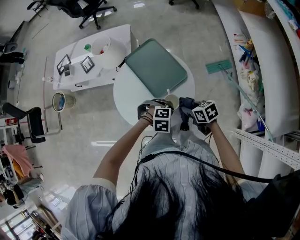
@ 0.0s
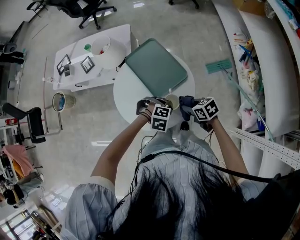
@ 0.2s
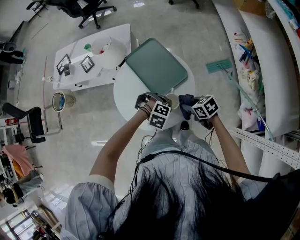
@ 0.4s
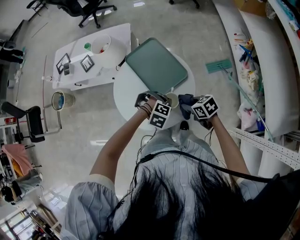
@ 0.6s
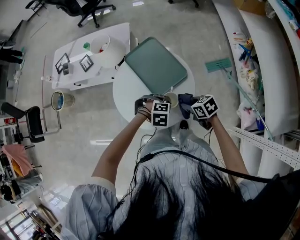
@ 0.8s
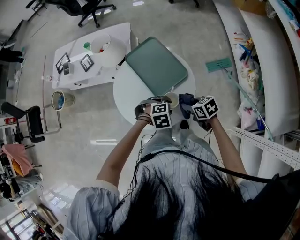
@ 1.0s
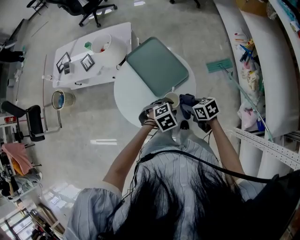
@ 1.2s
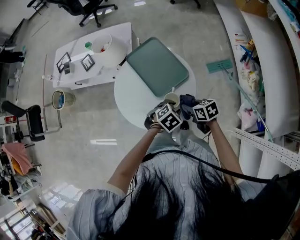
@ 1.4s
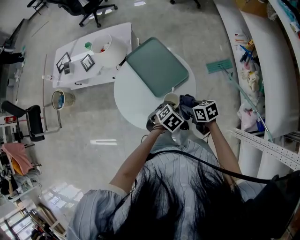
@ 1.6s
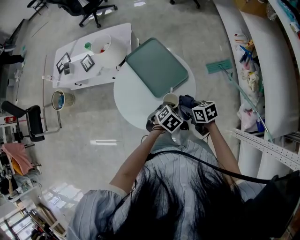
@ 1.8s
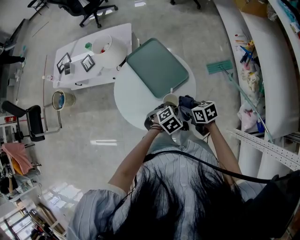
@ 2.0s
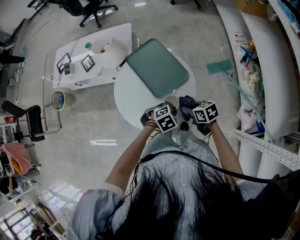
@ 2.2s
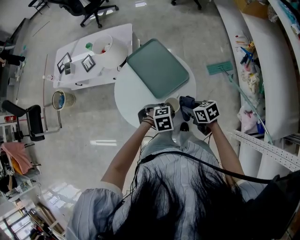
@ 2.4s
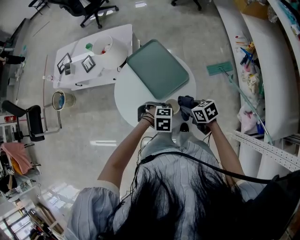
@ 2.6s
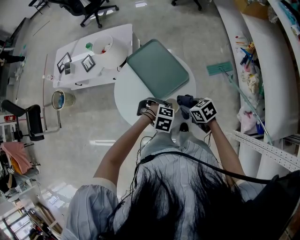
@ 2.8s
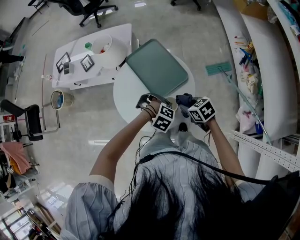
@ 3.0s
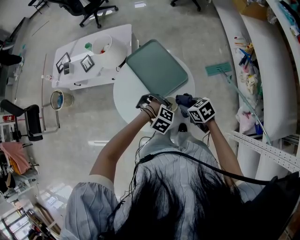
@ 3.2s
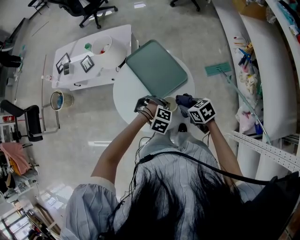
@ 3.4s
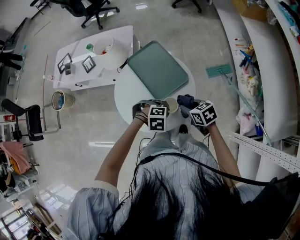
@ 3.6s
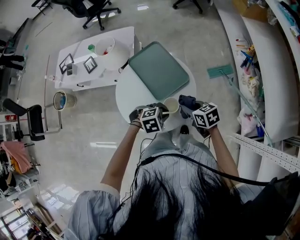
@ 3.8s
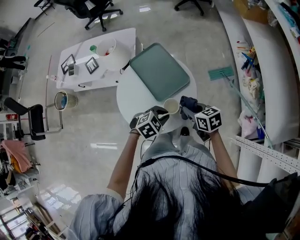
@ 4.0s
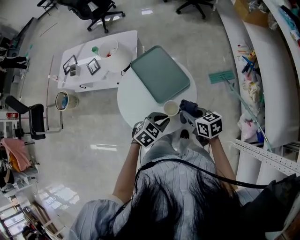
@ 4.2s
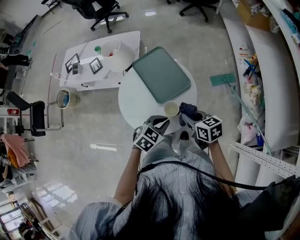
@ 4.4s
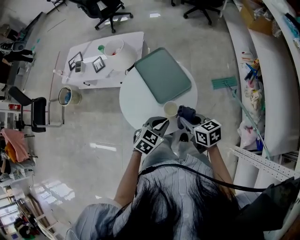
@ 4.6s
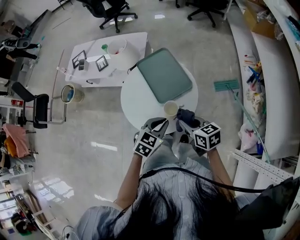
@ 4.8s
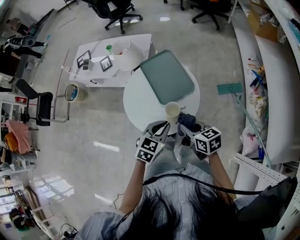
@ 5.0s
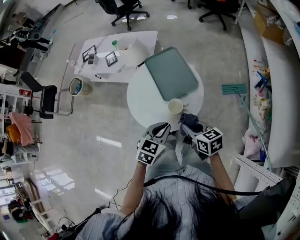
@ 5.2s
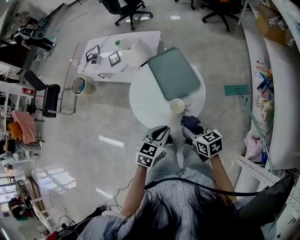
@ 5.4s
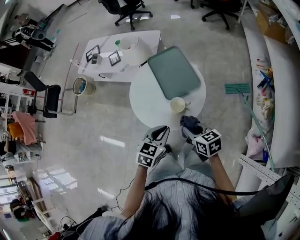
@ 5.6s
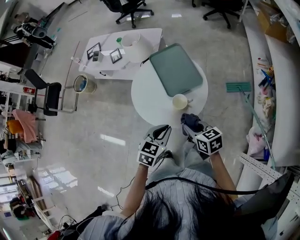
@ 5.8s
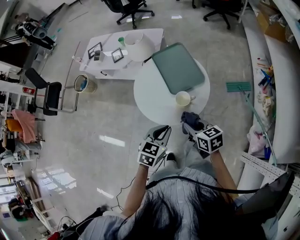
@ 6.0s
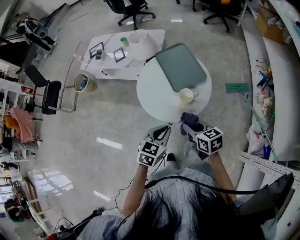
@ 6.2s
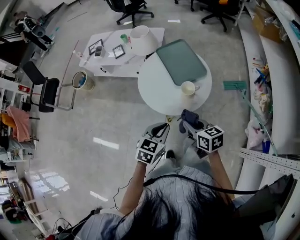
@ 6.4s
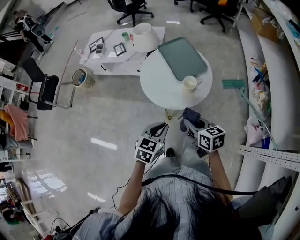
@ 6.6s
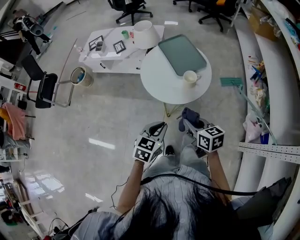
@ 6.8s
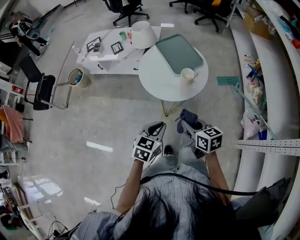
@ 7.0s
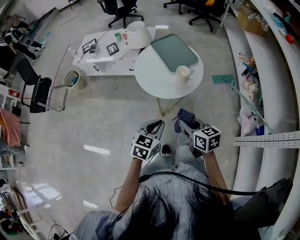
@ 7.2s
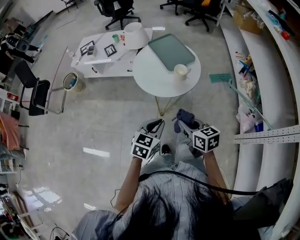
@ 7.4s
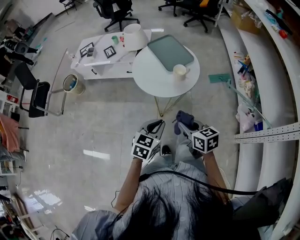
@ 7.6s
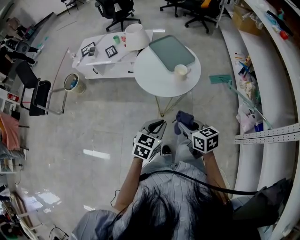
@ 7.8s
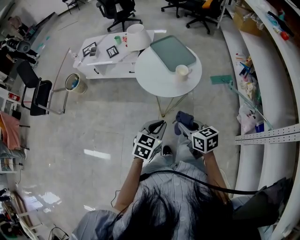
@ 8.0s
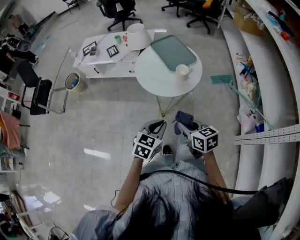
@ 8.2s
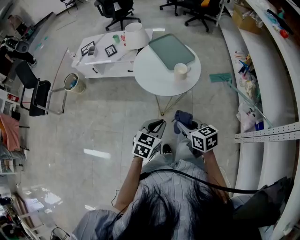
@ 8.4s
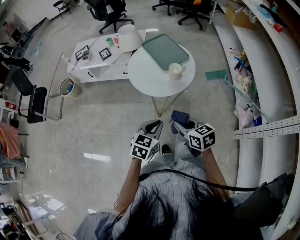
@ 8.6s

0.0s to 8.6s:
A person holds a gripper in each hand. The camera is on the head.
0.0s to 1.4s: The left gripper rolls counterclockwise, seen from behind, by approximately 40 degrees, and opens up.
1.4s to 2.8s: The left gripper moves approximately 5 cm, rotates around the line of its fingers by some 50 degrees, clockwise from behind, and closes its fingers.
2.8s to 4.4s: The two grippers go some 10 cm upward. The left gripper points its fingers about 30 degrees further upward.
4.4s to 5.8s: Both grippers travel together backward, about 5 cm. The left gripper swivels roughly 30 degrees.
5.8s to 7.2s: The grippers both shift backward and to the left by approximately 20 cm.
7.2s to 8.6s: There are only small adjustments of the grippers.

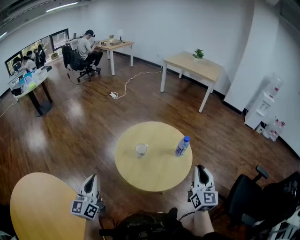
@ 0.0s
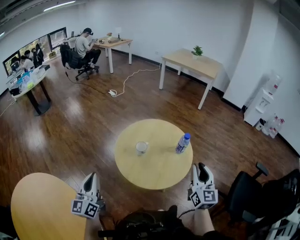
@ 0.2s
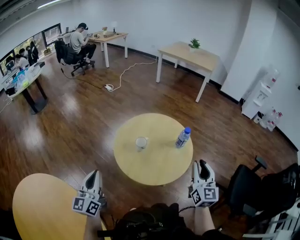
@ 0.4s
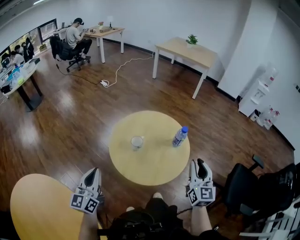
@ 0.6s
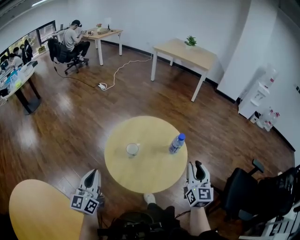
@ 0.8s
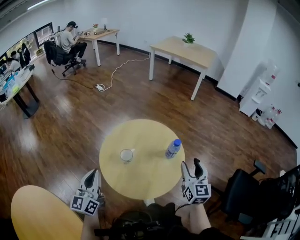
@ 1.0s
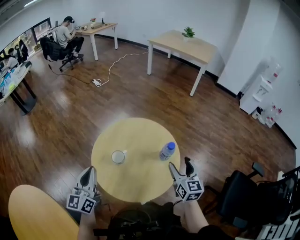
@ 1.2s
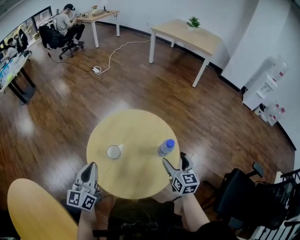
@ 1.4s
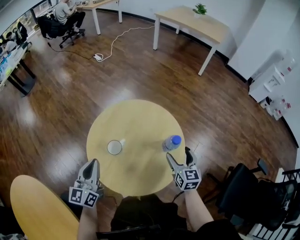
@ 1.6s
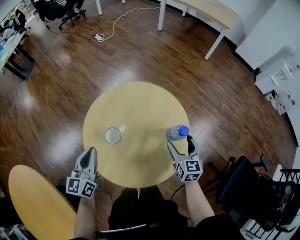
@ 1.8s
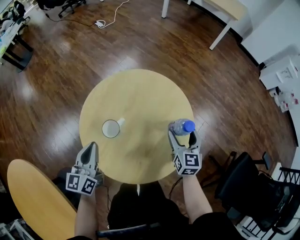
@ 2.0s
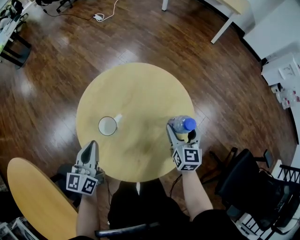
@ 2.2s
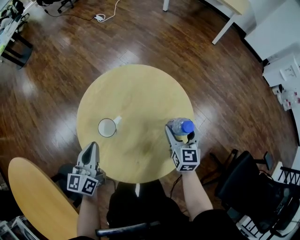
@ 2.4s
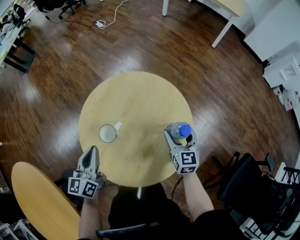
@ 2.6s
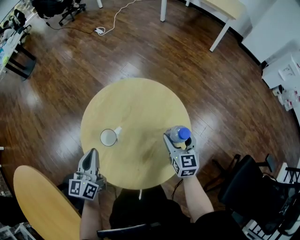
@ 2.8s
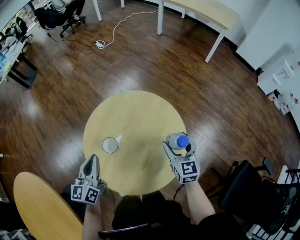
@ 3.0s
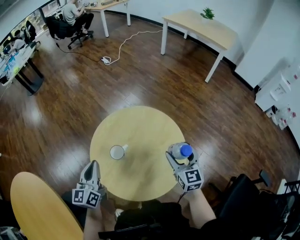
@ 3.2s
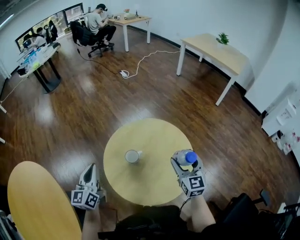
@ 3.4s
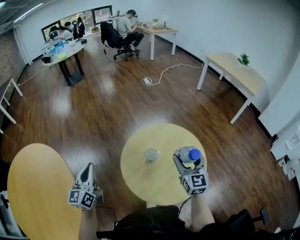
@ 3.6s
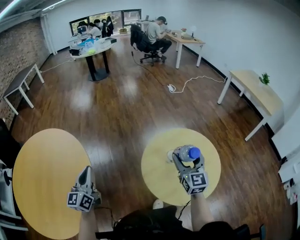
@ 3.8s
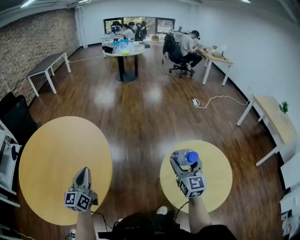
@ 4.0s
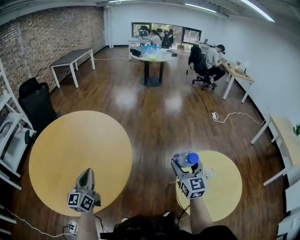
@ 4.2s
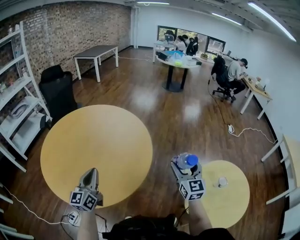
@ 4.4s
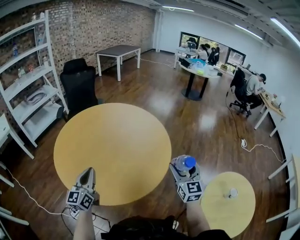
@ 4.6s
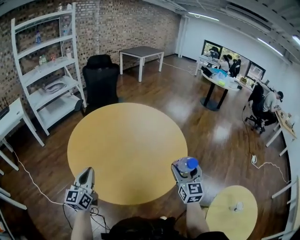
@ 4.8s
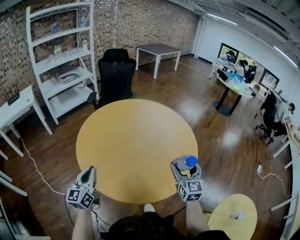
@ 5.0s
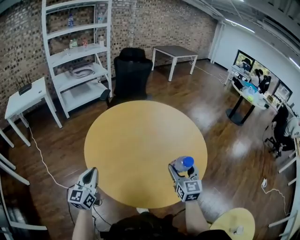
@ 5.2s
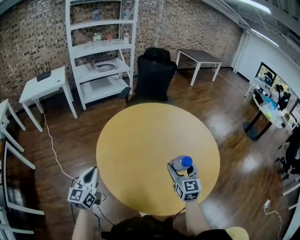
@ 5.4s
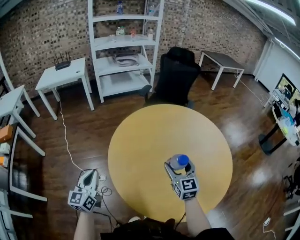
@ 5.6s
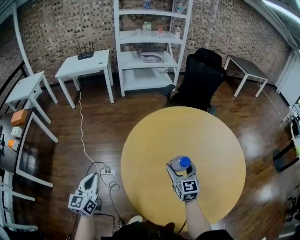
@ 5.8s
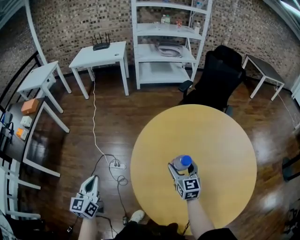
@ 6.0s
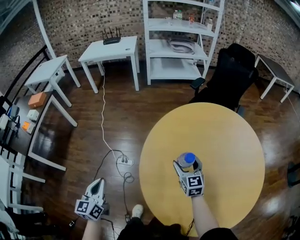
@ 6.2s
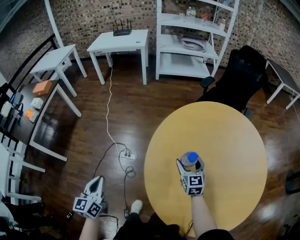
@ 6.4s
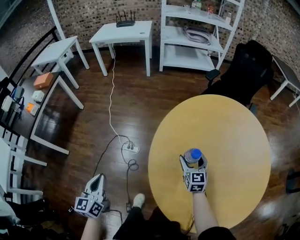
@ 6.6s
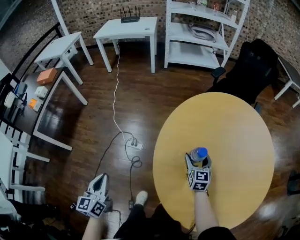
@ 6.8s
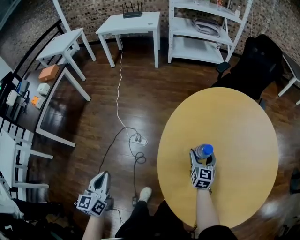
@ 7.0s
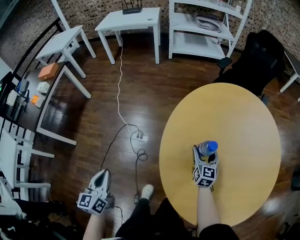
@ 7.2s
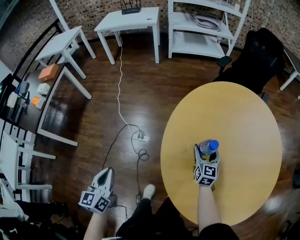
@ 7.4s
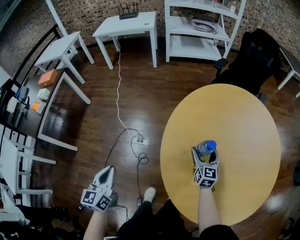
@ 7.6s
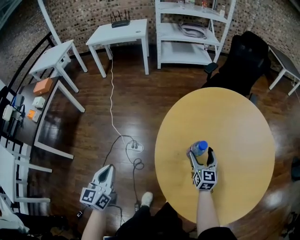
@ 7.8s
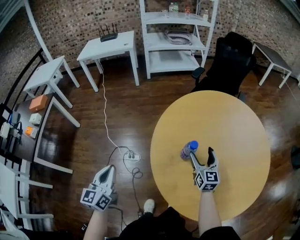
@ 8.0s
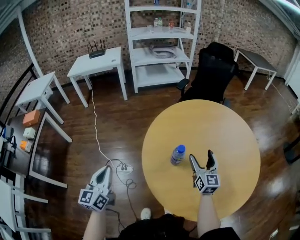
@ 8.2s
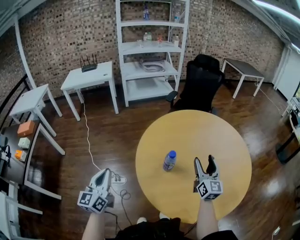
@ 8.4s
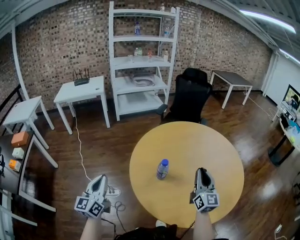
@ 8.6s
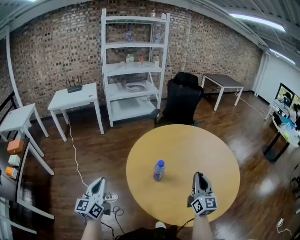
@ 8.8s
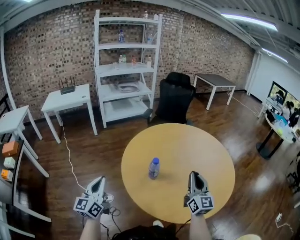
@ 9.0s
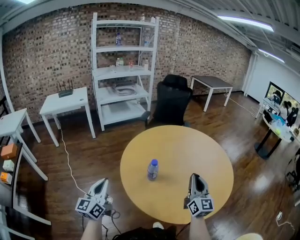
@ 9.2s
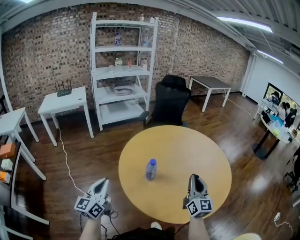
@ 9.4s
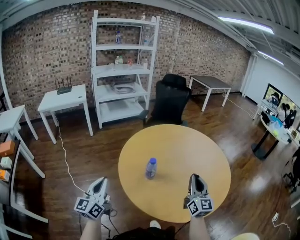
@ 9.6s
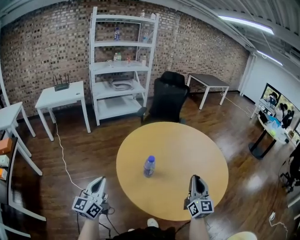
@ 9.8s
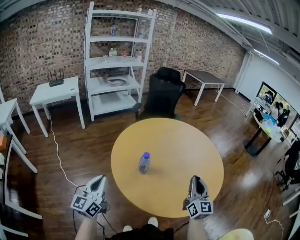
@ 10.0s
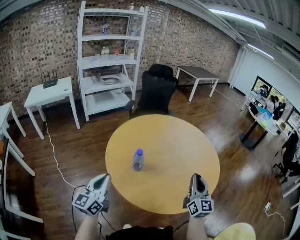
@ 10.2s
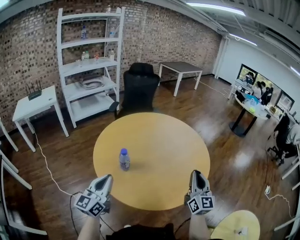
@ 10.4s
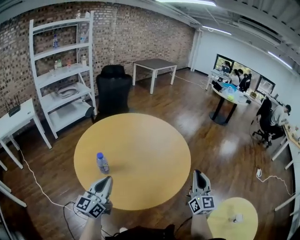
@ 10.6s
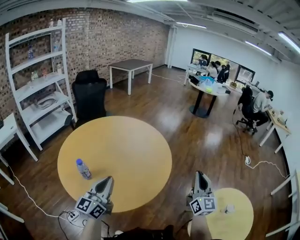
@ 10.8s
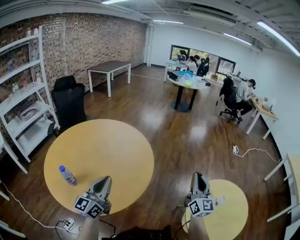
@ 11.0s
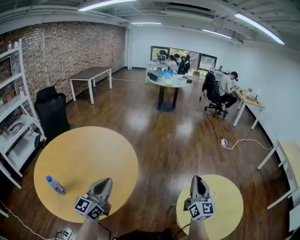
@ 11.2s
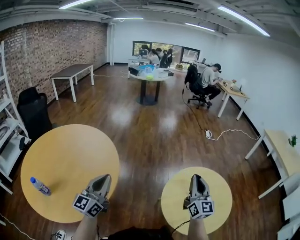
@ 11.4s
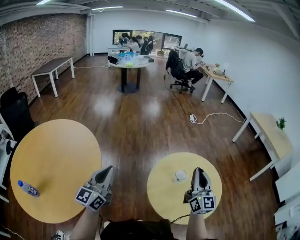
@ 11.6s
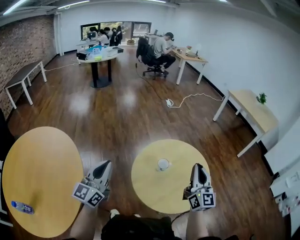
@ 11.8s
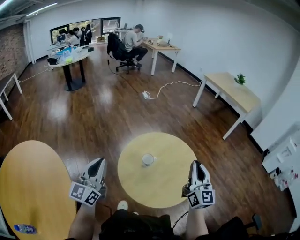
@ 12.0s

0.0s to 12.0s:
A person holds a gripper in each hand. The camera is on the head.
0.0s to 1.6s: The right gripper moves downward and forward, approximately 25 cm, swivels about 30 degrees, and opens; the left gripper shifts approximately 25 cm forward, to the right and downward.
3.0s to 4.4s: Both grippers are carried approximately 60 cm. The right gripper changes its angle by approximately 70 degrees; the left gripper rotates approximately 70 degrees.
4.4s to 6.0s: The right gripper changes place by roughly 60 cm, and turns by approximately 70 degrees. Meanwhile the left gripper changes place by about 40 cm, and changes its angle by about 70 degrees.
6.0s to 7.6s: The right gripper moves downward, roughly 10 cm, while the left gripper moves to the left, approximately 5 cm.
7.6s to 9.0s: The left gripper goes roughly 15 cm upward, forward and to the right, and swivels some 40 degrees. The right gripper moves upward, backward and to the right, approximately 35 cm, turns by roughly 40 degrees, and closes.
9.0s to 10.4s: The right gripper moves to the right and backward, approximately 15 cm. Meanwhile the left gripper moves to the right, about 15 cm, and rotates approximately 20 degrees.
10.4s to 12.0s: The left gripper moves approximately 70 cm, and swivels some 80 degrees, while the right gripper shifts by roughly 70 cm, and turns by about 80 degrees.

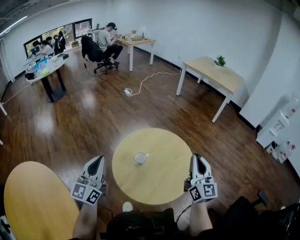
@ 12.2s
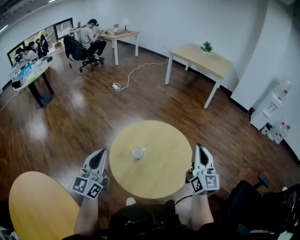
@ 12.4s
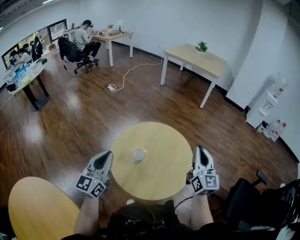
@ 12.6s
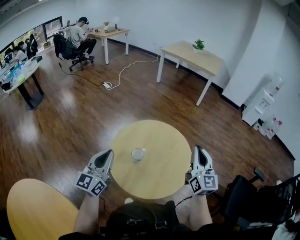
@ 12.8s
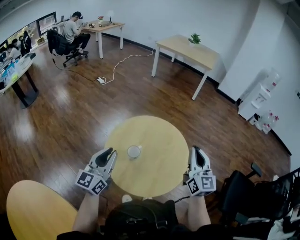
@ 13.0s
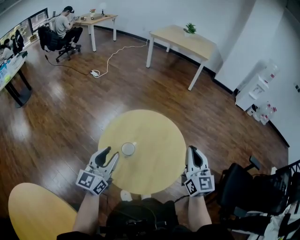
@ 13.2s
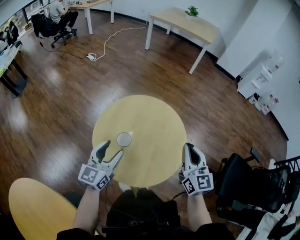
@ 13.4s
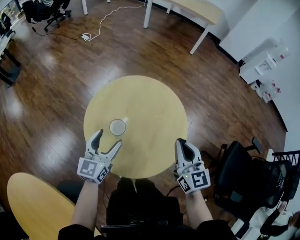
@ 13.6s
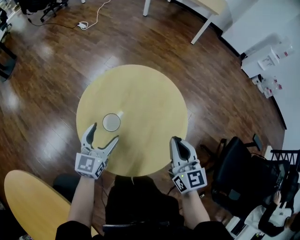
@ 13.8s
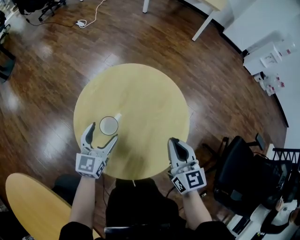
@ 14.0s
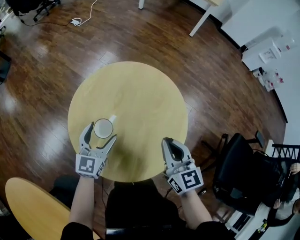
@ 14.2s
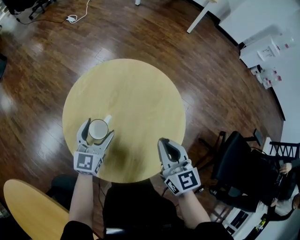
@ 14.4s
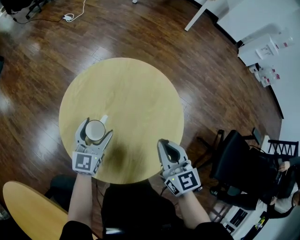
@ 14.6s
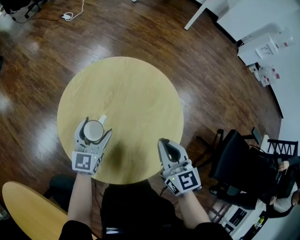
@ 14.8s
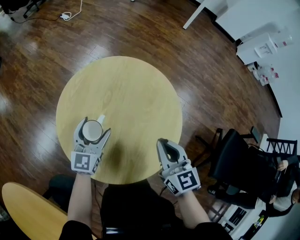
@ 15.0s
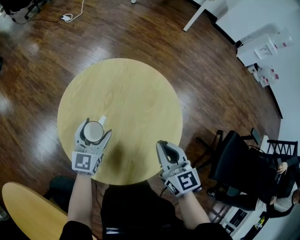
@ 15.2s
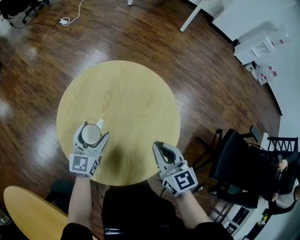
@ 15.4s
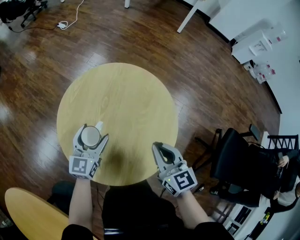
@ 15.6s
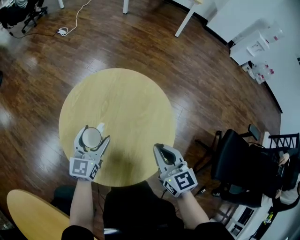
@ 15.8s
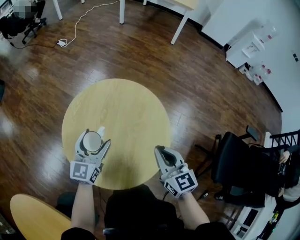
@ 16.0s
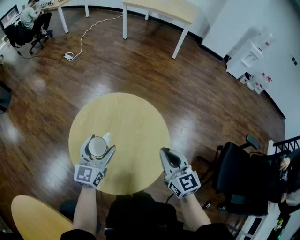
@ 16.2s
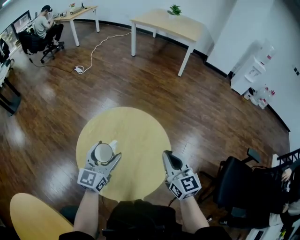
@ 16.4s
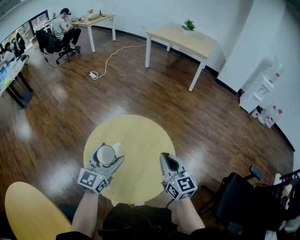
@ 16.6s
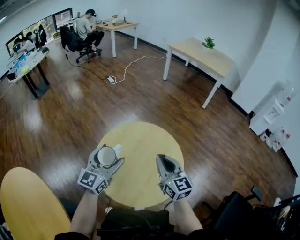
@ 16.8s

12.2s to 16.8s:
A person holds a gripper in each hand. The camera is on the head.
12.2s to 13.8s: The left gripper shifts about 30 cm downward, forward and to the right, turns by some 40 degrees, and opens its fingers. The right gripper moves downward, approximately 15 cm, and turns by roughly 30 degrees.
13.8s to 15.2s: Both grippers travel together downward, approximately 5 cm.
15.2s to 16.8s: The right gripper moves upward and forward, some 15 cm, and turns by approximately 20 degrees, while the left gripper travels upward by some 20 cm.
